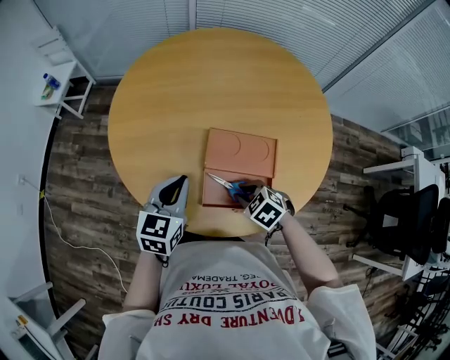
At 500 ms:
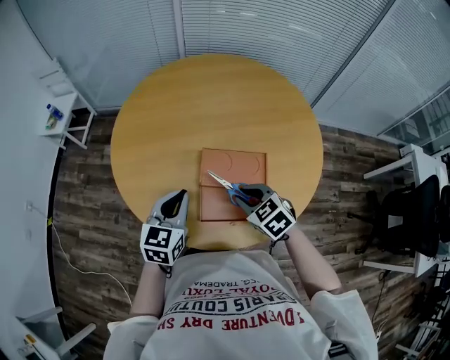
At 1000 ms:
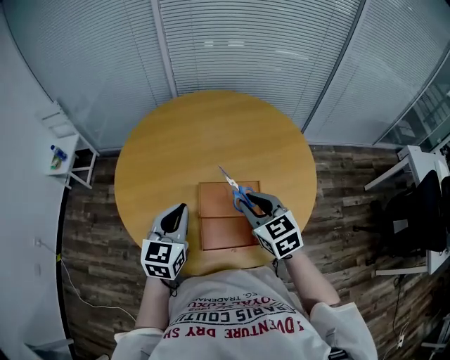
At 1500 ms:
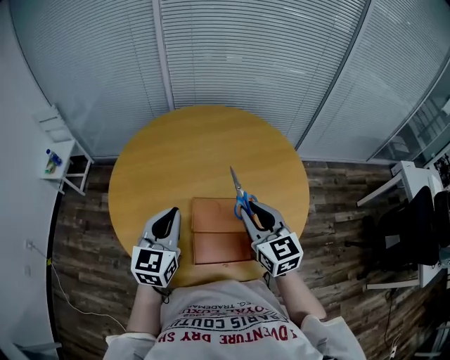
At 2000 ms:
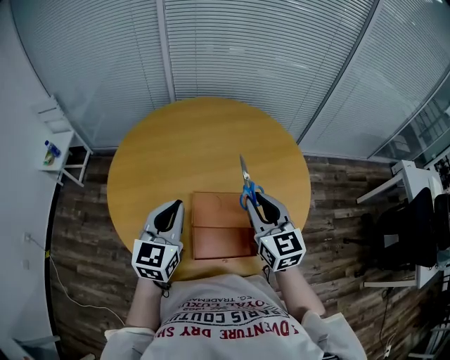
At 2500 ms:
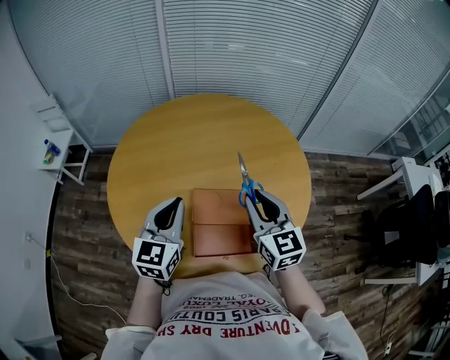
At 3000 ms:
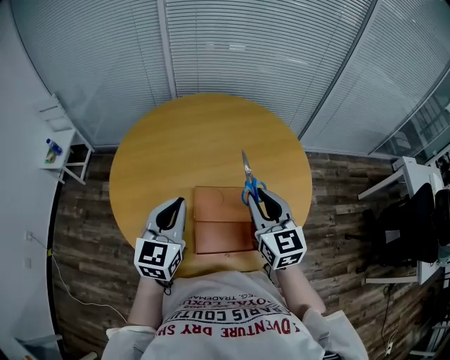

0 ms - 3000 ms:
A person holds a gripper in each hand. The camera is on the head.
0 ms - 1500 ms: The left gripper moves upward, approximately 10 cm. The right gripper goes about 25 cm upward, and tilts its fingers roughly 50 degrees upward.
1500 ms - 3000 ms: The grippers stay close to where they were, moving slightly.

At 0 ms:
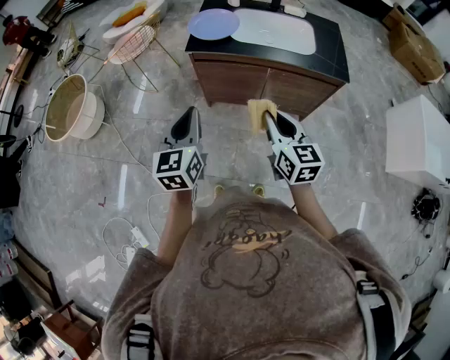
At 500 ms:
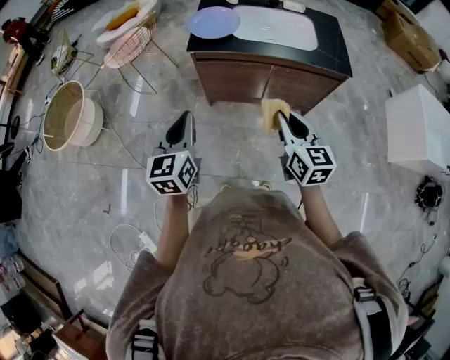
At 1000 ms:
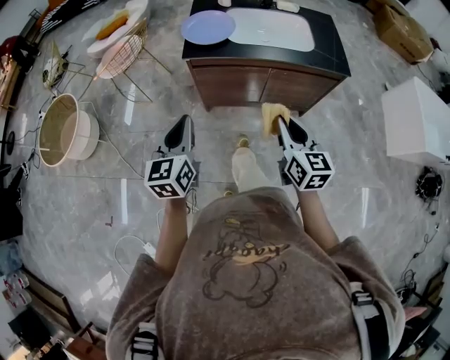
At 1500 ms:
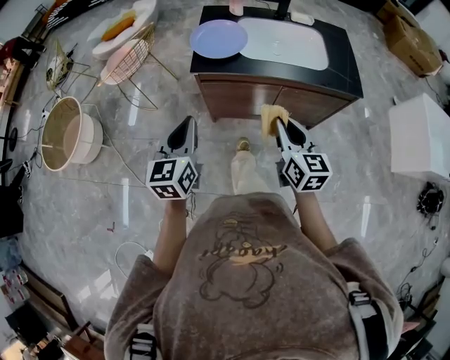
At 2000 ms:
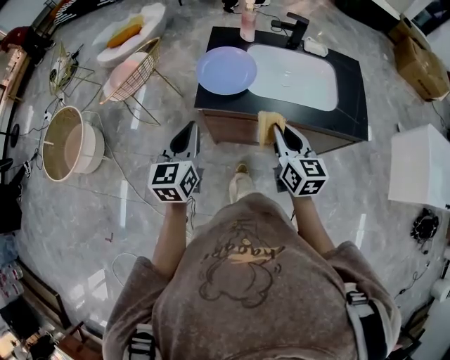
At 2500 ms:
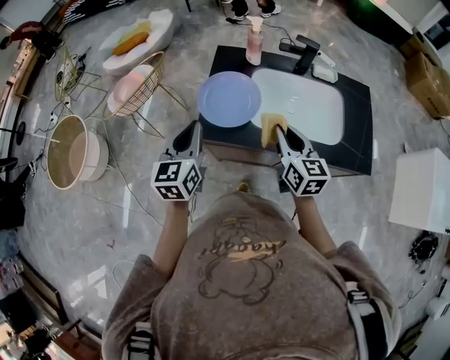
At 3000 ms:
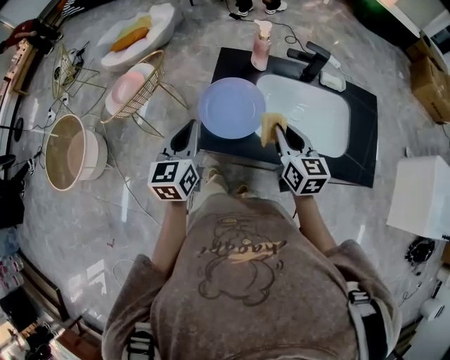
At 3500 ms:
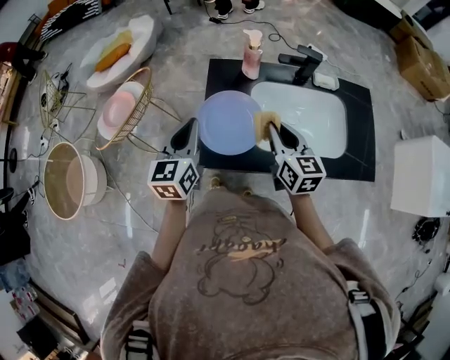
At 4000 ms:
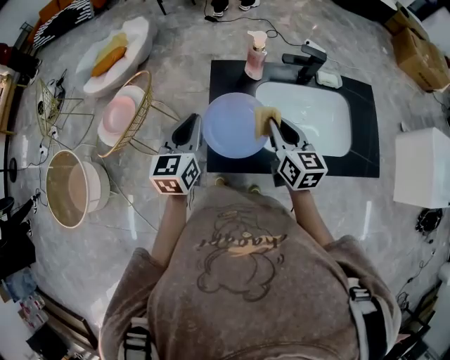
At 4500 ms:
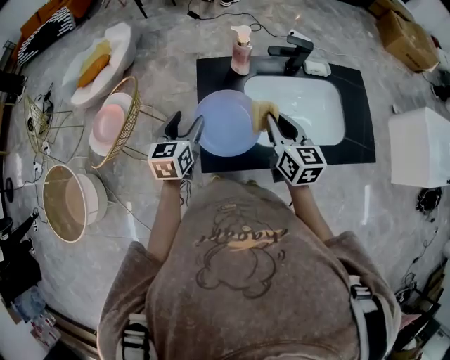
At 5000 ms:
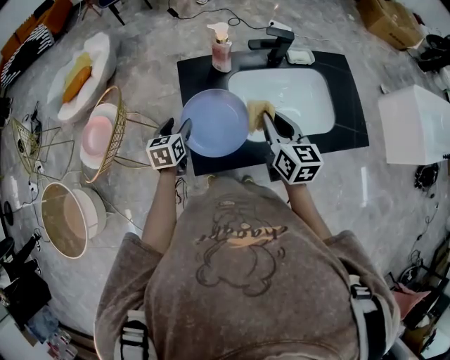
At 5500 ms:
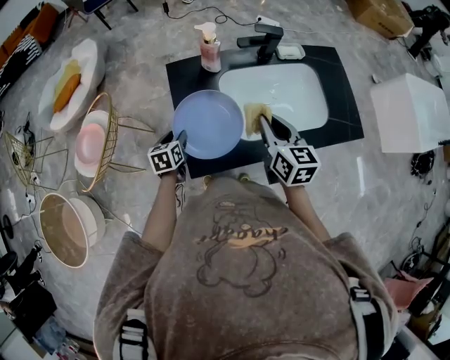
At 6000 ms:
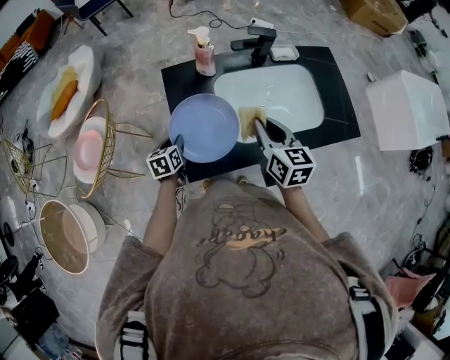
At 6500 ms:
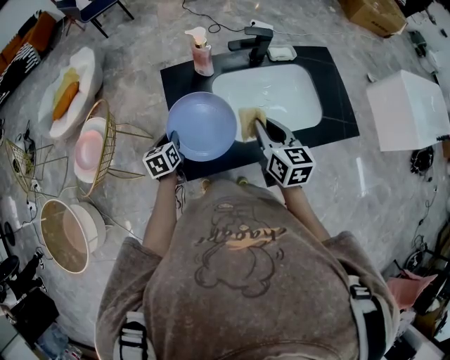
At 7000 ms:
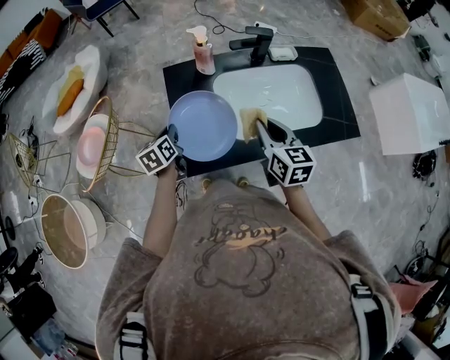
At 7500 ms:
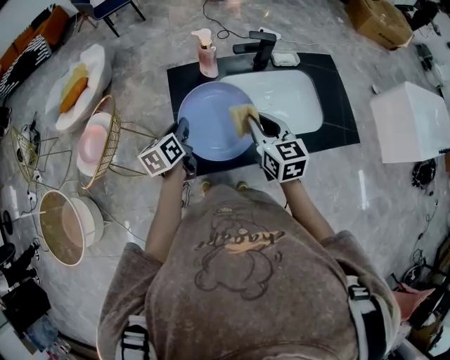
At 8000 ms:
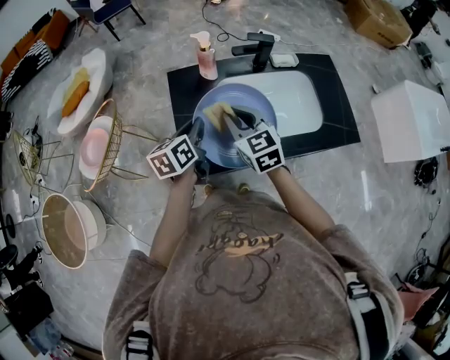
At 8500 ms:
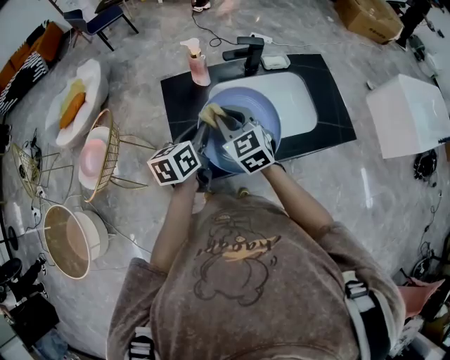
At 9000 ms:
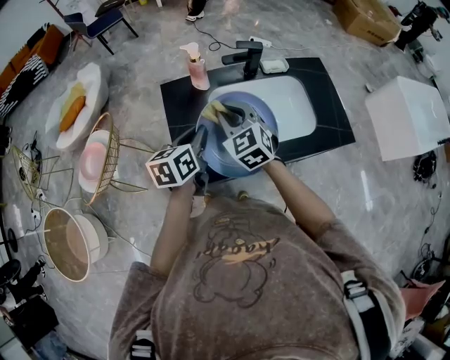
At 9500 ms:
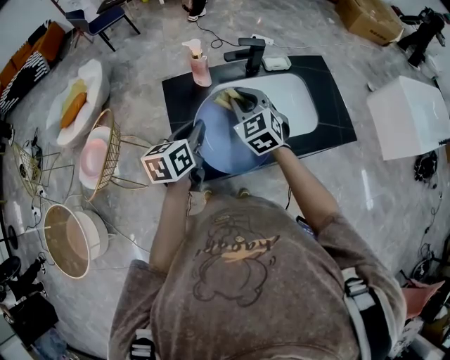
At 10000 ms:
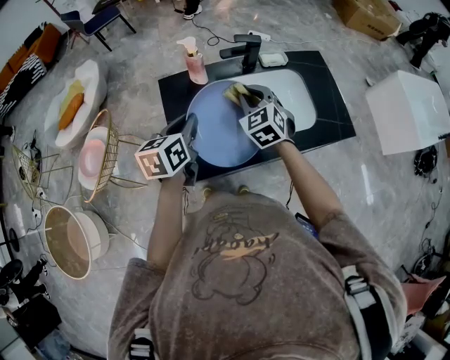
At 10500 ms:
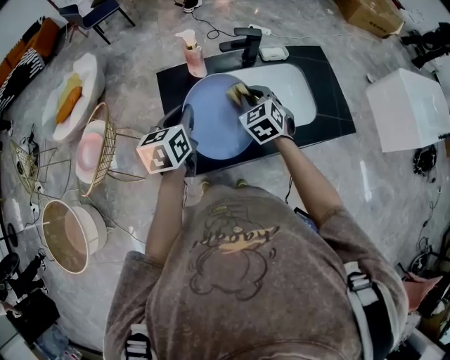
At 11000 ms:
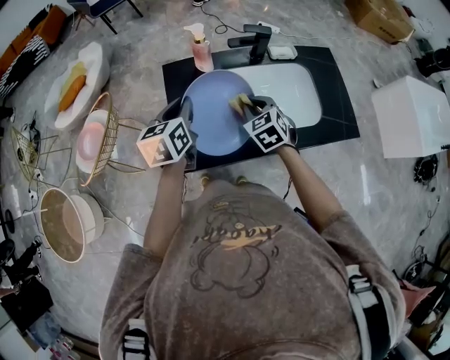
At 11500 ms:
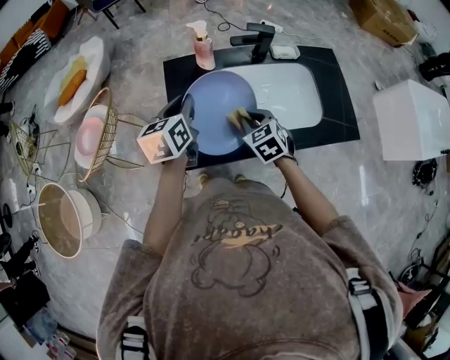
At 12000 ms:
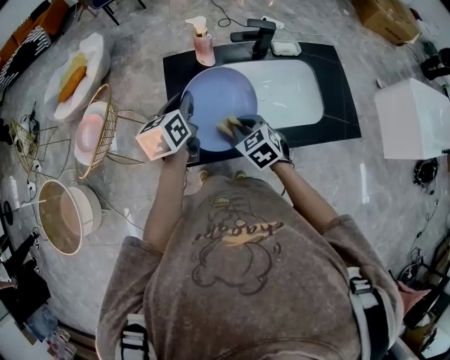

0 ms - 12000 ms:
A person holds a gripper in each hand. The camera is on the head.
0 ms - 2000 ms: Both grippers travel together forward, some 30 cm.
2000 ms - 4000 ms: Both grippers move forward, some 30 cm.
4000 ms - 6000 ms: The right gripper heads to the right, covering some 5 cm, while the left gripper shifts roughly 25 cm downward, swivels about 30 degrees, and opens its fingers.
6000 ms - 8000 ms: The right gripper travels to the left by about 5 cm, and swivels approximately 30 degrees; the left gripper moves upward and to the right, about 20 cm, and changes its angle by roughly 20 degrees.
8000 ms - 10000 ms: The right gripper moves to the right and forward, about 10 cm, and rotates about 30 degrees; the left gripper shifts by some 5 cm.
10000 ms - 12000 ms: The right gripper moves backward and downward, about 15 cm, and turns by some 30 degrees.

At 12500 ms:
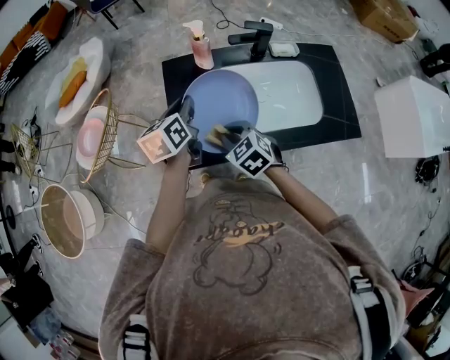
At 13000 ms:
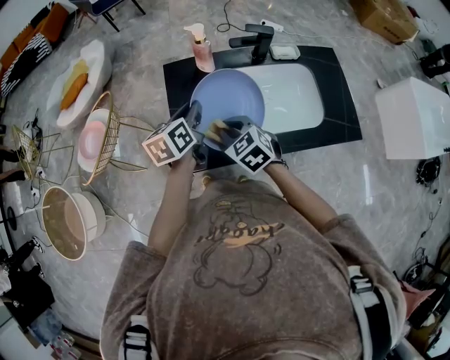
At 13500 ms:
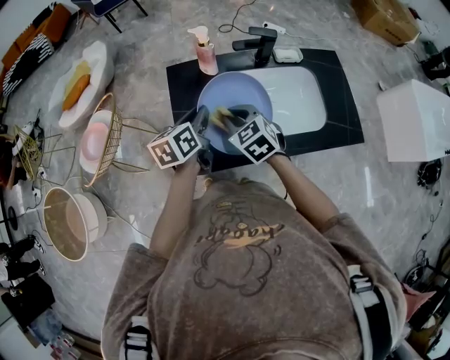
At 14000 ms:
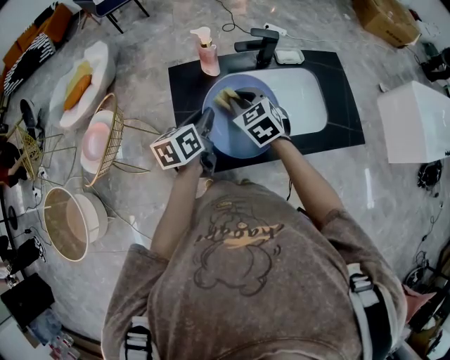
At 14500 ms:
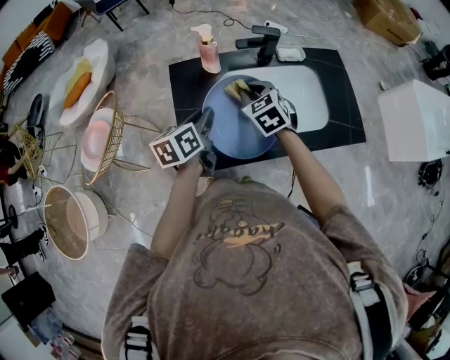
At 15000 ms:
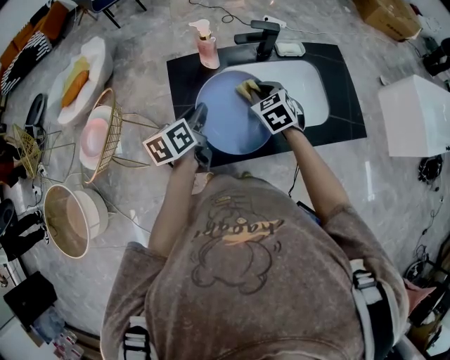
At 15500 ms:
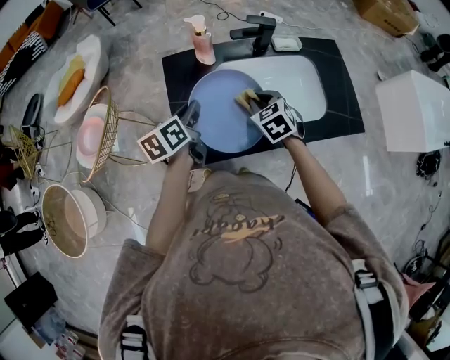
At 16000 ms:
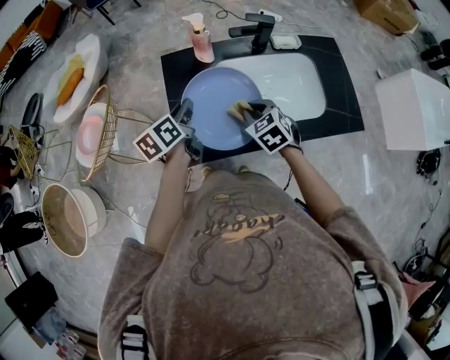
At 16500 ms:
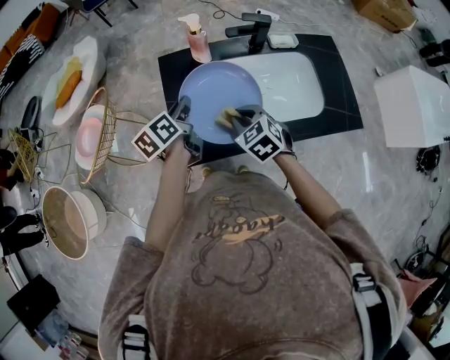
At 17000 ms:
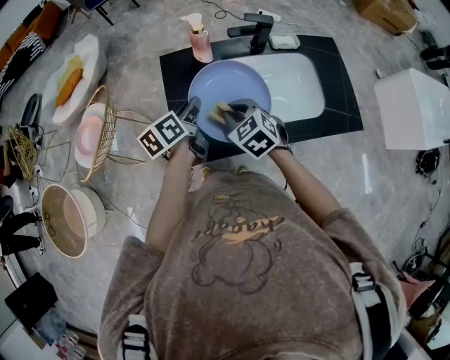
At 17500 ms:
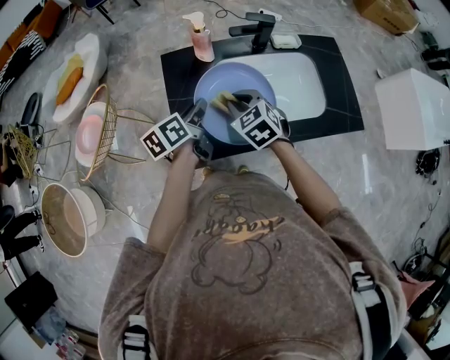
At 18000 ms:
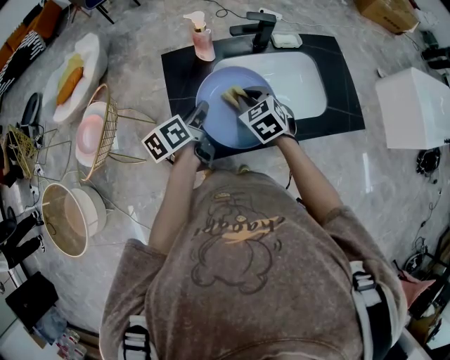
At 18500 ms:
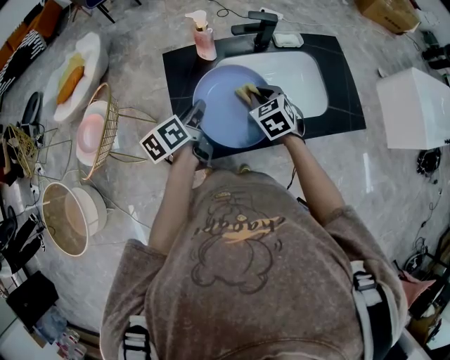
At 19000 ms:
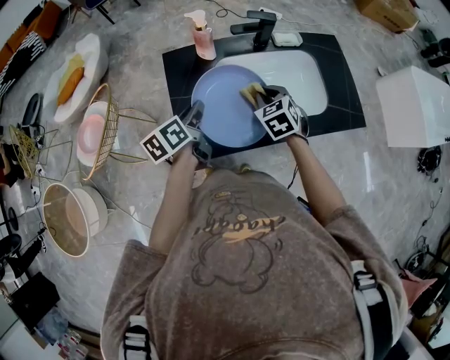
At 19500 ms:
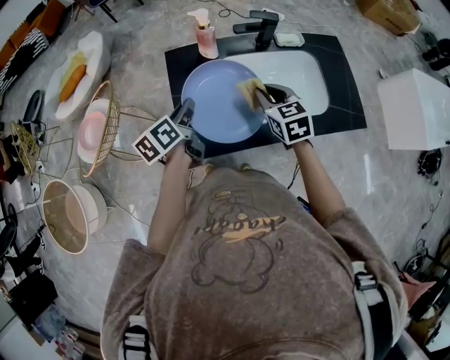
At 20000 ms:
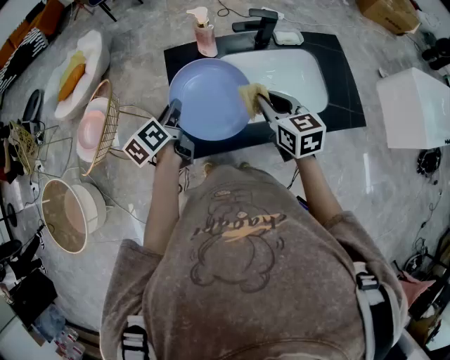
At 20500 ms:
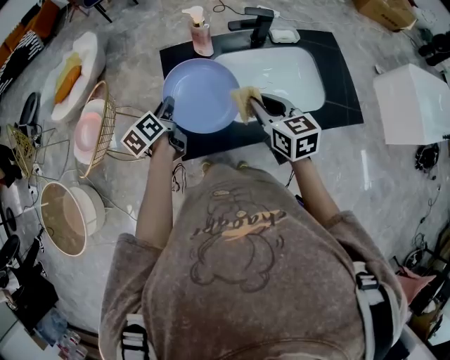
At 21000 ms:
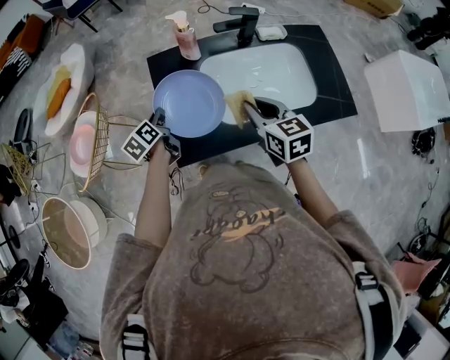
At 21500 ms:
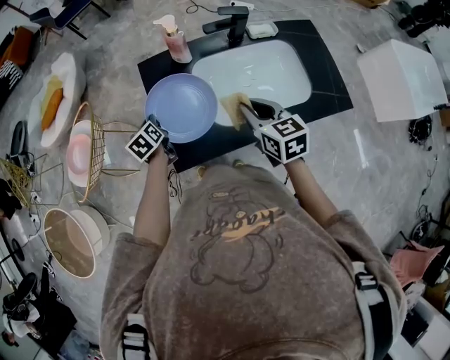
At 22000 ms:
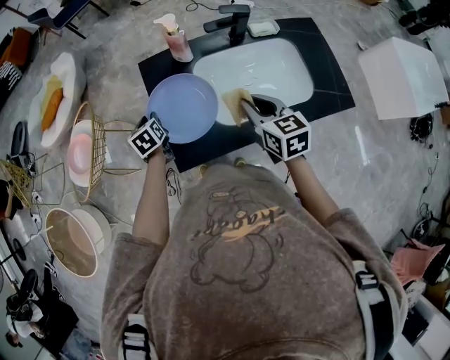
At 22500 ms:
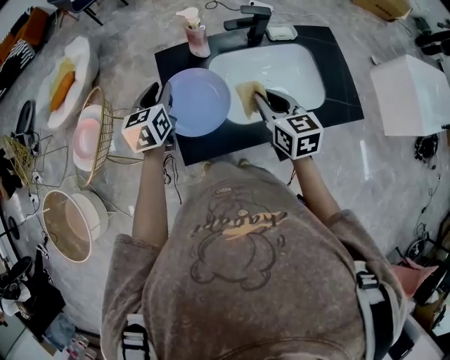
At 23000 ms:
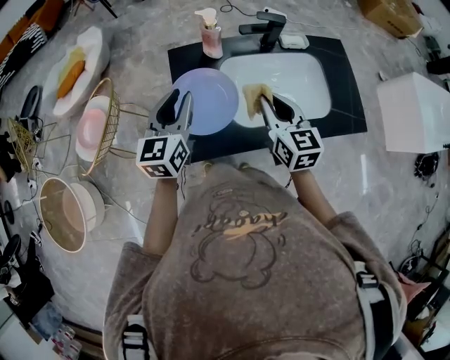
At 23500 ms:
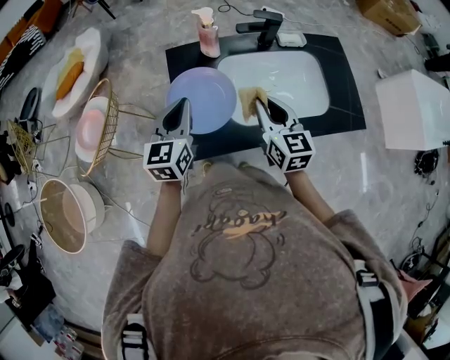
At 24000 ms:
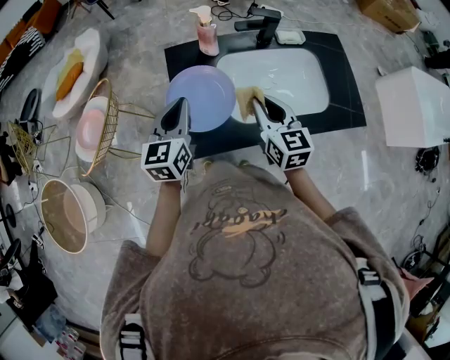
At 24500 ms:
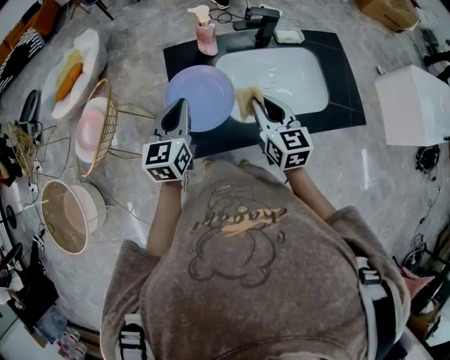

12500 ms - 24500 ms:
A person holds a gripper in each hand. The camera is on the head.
12500 ms - 14500 ms: The right gripper is displaced forward and to the right by about 15 cm.
14500 ms - 16500 ms: The right gripper heads backward, covering approximately 10 cm. Meanwhile the left gripper ends up approximately 5 cm from where it was.
16500 ms - 18500 ms: The right gripper goes about 10 cm forward and to the right.
18500 ms - 20500 ms: The right gripper is displaced upward and backward by some 10 cm, and rotates about 30 degrees. The left gripper moves to the left, about 10 cm.
20500 ms - 22500 ms: The left gripper is displaced upward by roughly 5 cm, and rotates roughly 40 degrees.
22500 ms - 24500 ms: The left gripper is displaced backward by approximately 10 cm, and closes its fingers.
